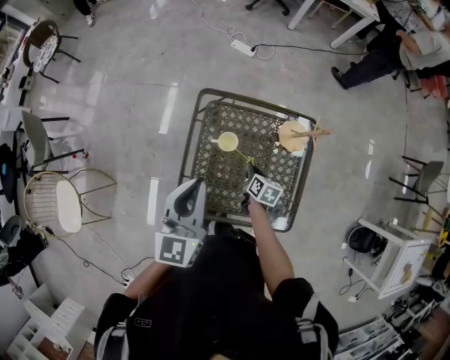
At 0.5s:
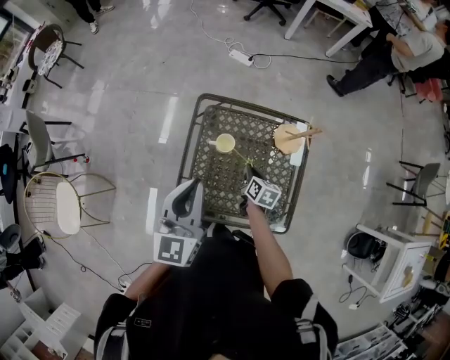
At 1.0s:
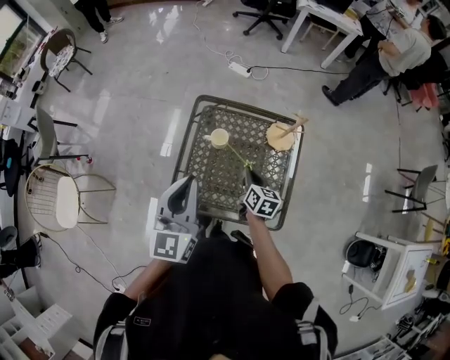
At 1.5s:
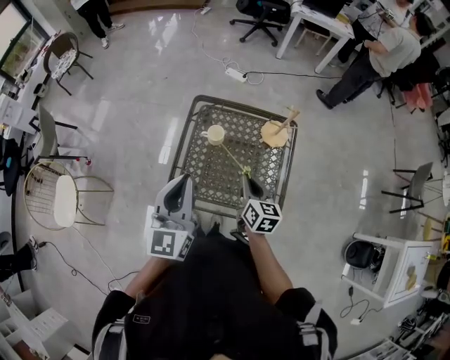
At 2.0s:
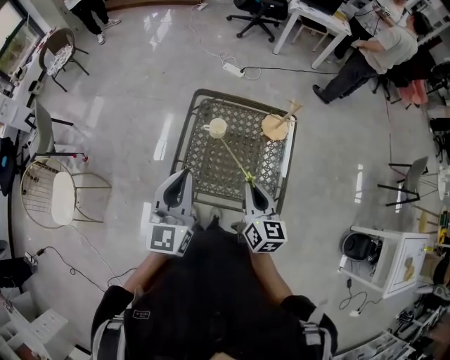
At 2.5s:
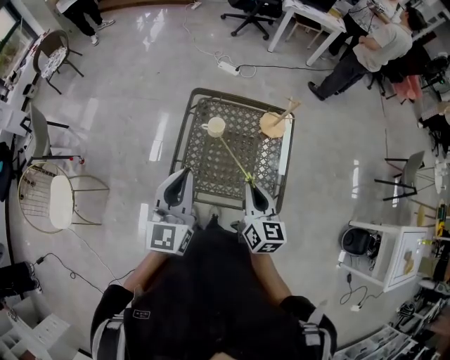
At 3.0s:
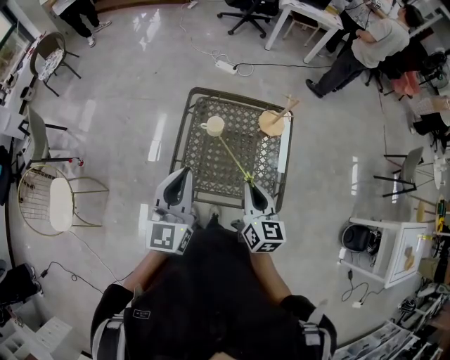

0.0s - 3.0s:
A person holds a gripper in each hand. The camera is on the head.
0.0s - 1.5s: The left gripper is displaced backward by roughly 15 cm. Meanwhile the right gripper goes approximately 25 cm upward and backward, and rotates roughly 30 degrees.
1.5s - 3.0s: The right gripper travels upward and backward by about 10 cm.

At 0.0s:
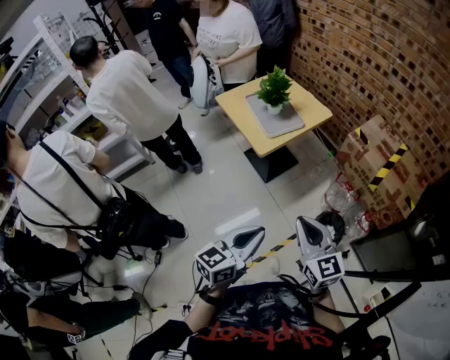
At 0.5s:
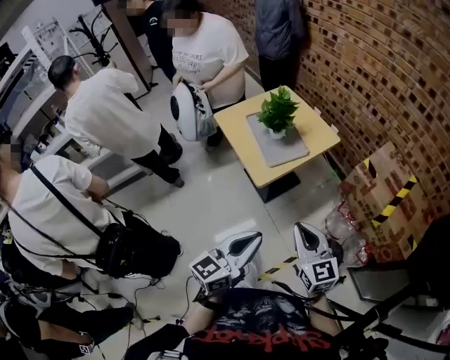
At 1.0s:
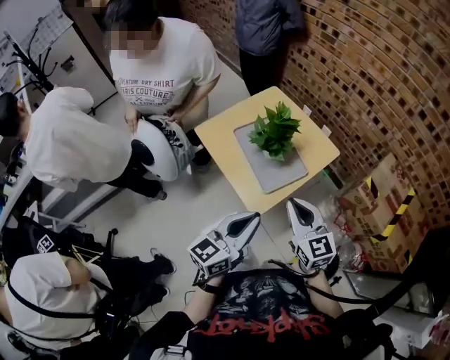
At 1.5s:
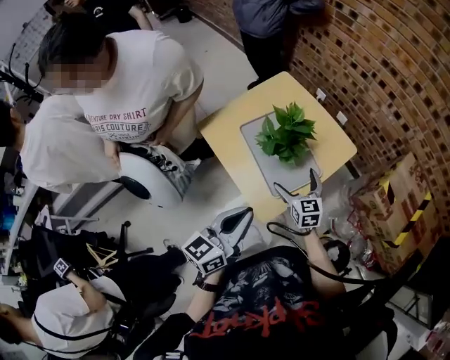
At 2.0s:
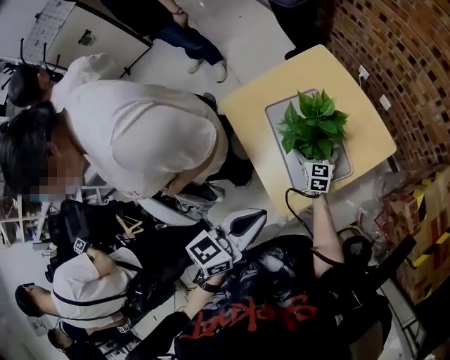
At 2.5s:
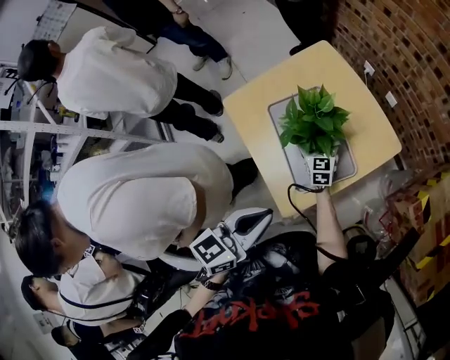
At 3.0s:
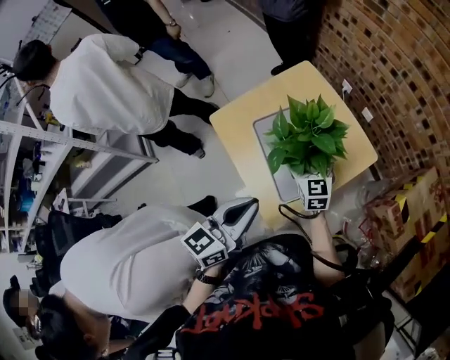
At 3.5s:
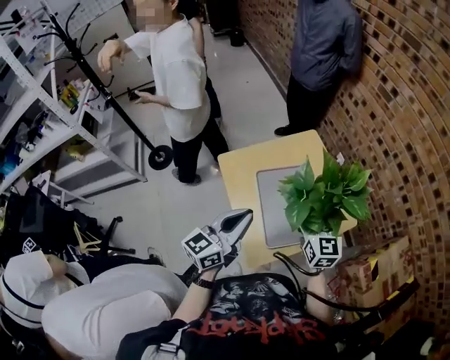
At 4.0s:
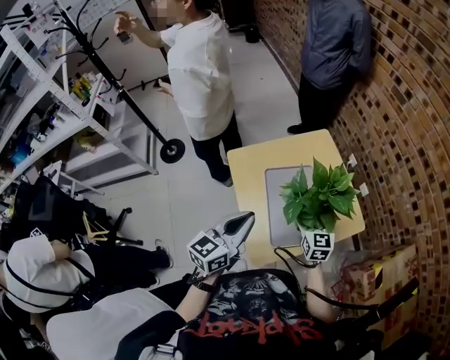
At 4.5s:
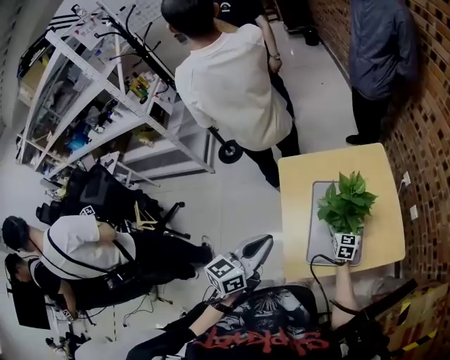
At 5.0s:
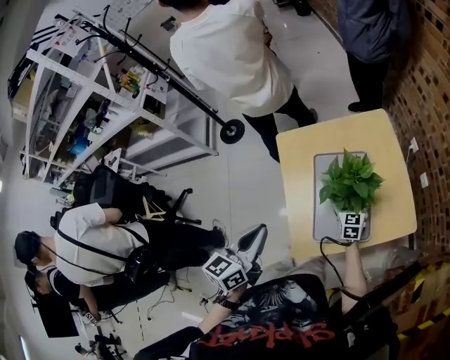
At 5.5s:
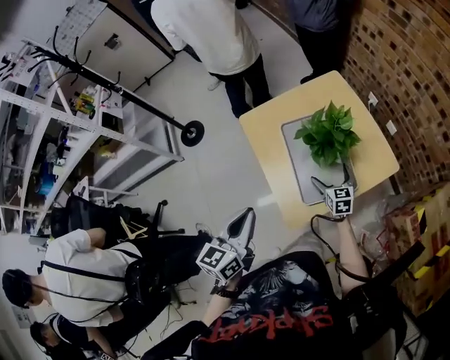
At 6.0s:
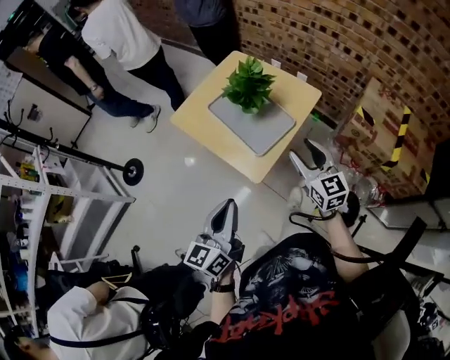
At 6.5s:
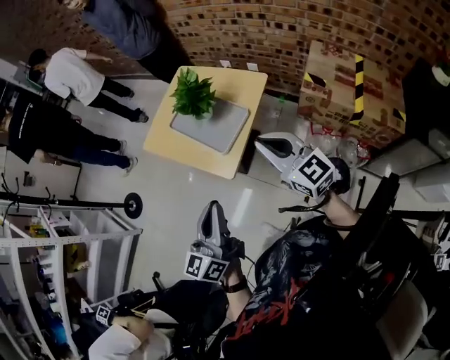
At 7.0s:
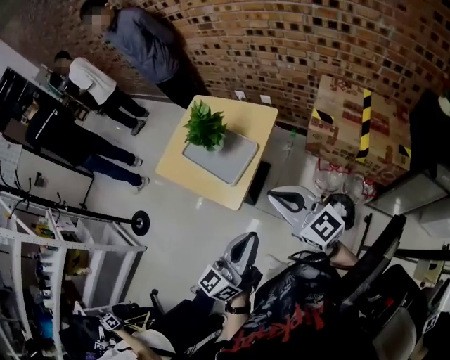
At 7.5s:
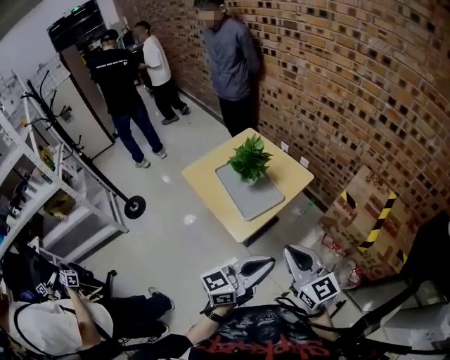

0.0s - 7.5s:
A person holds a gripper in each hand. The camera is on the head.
0.0s - 2.0s: The pair of grippers is taken forward, some 70 cm. The right gripper moves downward, about 35 cm, turns by some 20 degrees, and opens up.
2.0s - 4.0s: The right gripper heads upward, covering about 20 cm. Meanwhile the left gripper heads forward and to the left, covering approximately 10 cm, and turns by some 20 degrees.
4.0s - 5.5s: The left gripper travels backward by about 10 cm, while the right gripper shifts about 15 cm downward.
5.5s - 7.5s: The right gripper moves approximately 60 cm, turns by roughly 30 degrees, and closes up, while the left gripper moves about 35 cm, and turns by approximately 60 degrees.

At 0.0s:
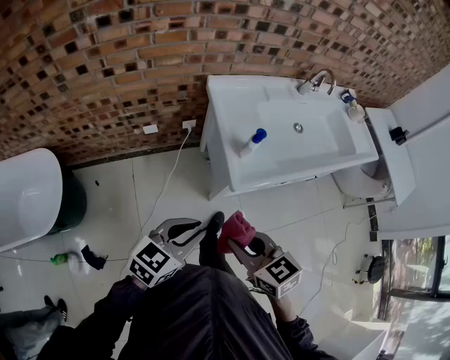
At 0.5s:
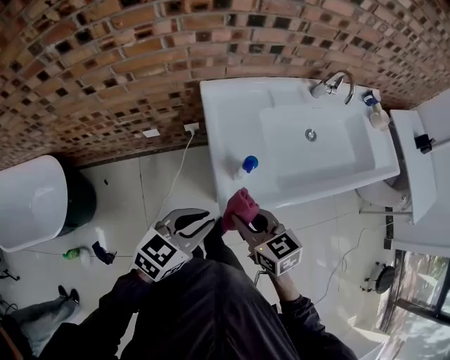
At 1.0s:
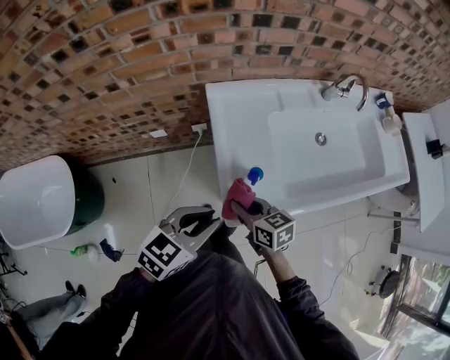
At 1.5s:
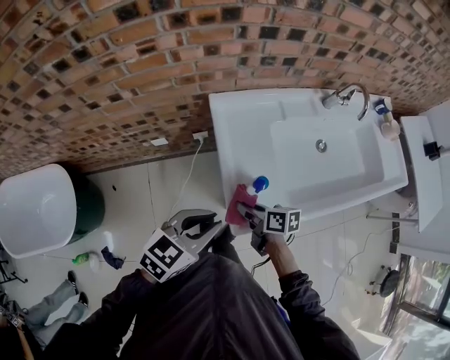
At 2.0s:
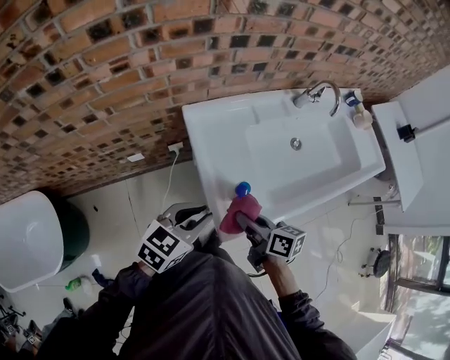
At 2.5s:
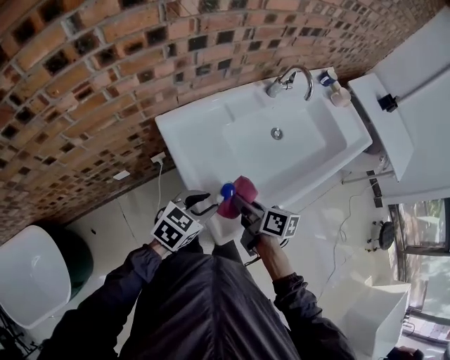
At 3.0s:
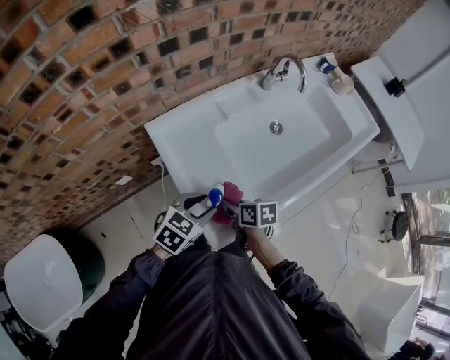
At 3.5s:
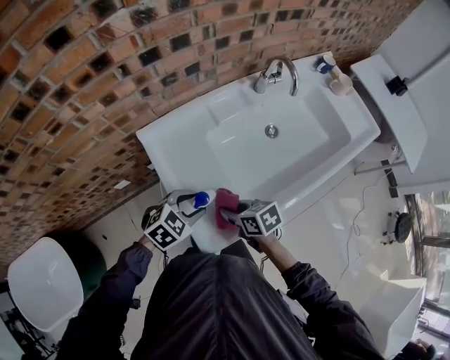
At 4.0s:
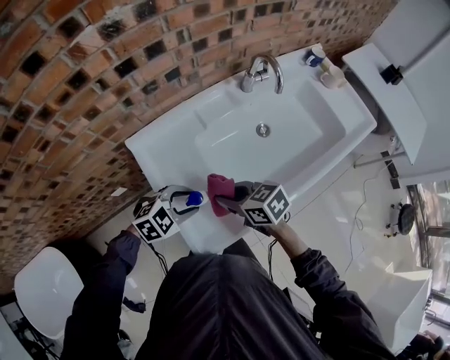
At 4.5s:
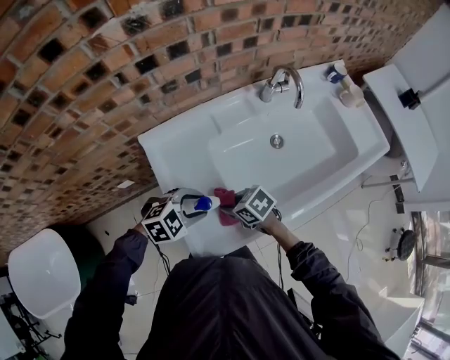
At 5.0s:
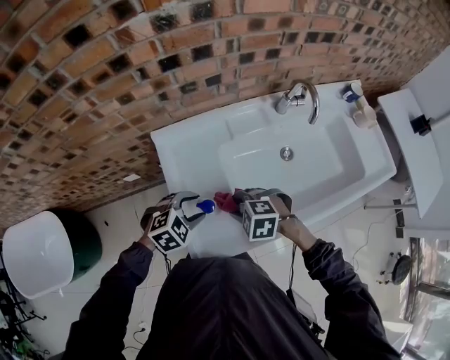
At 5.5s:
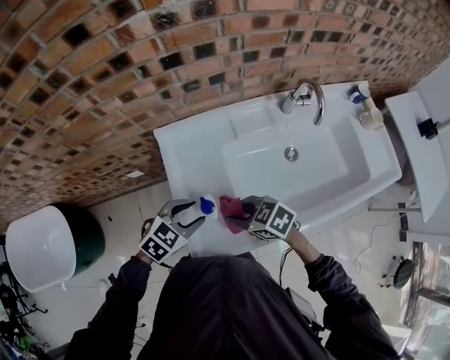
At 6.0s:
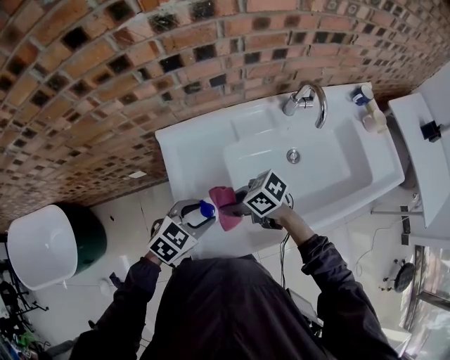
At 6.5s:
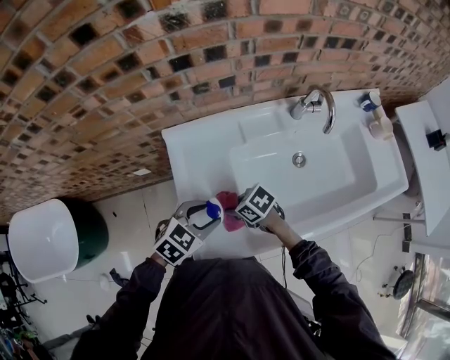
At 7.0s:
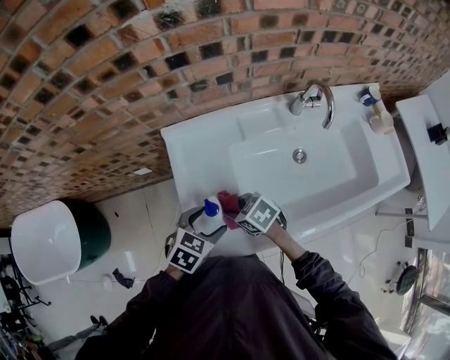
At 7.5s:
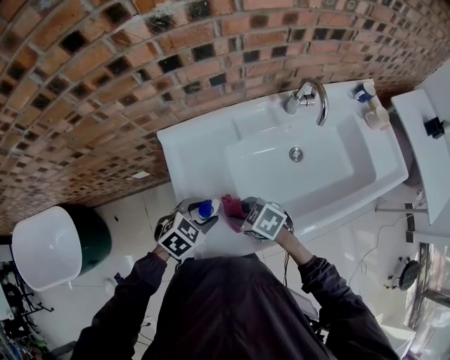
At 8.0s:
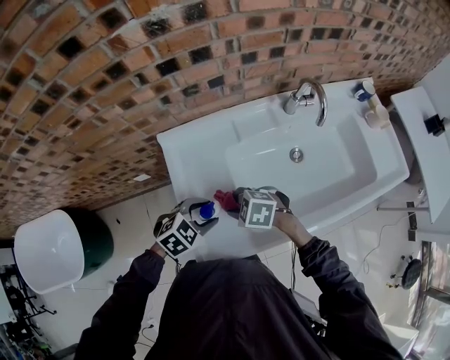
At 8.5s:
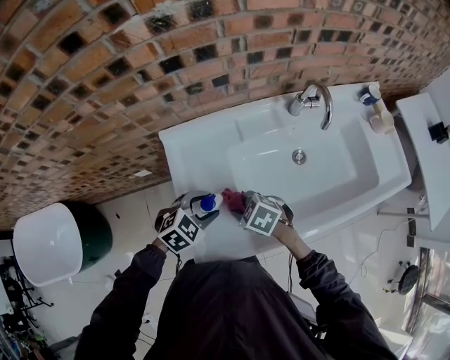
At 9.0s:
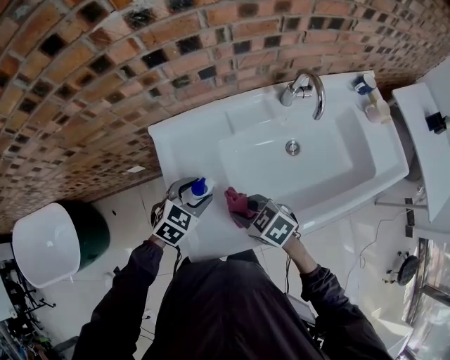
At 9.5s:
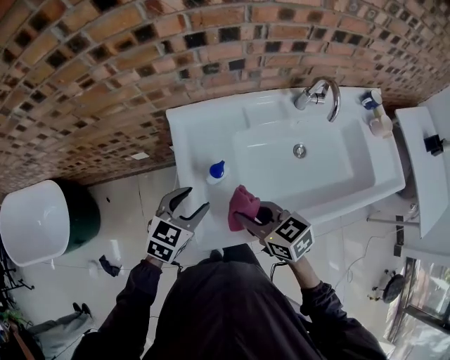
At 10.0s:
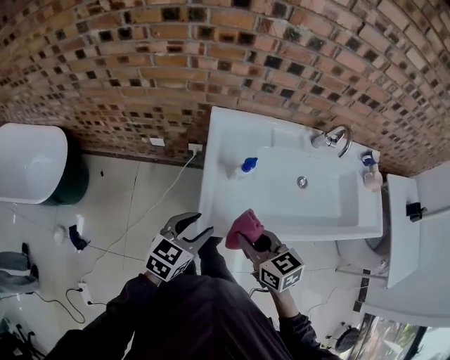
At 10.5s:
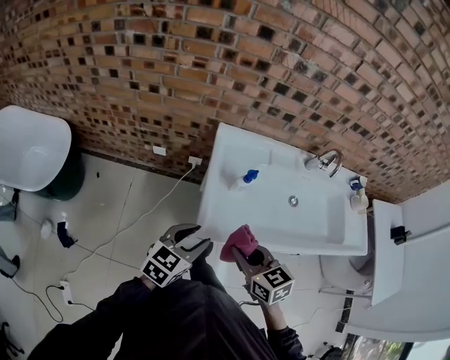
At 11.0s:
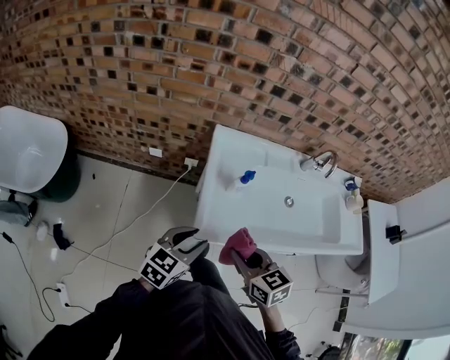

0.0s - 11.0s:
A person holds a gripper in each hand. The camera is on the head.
0.0s - 2.0s: Both grippers move forward, some 25 cm. The right gripper rotates around the line of its fingers by roughly 40 degrees, clockwise from behind.
2.0s - 3.5s: The right gripper goes approximately 10 cm downward, and changes its angle by roughly 20 degrees; the left gripper moves some 15 cm, and turns by roughly 30 degrees.
3.5s - 5.5s: The right gripper goes up and down, approximately 10 cm each way, reversing 2 times, and rolls counterclockwise, seen from behind, by some 40 degrees.
5.5s - 7.5s: The left gripper opens and closes again.
7.5s - 9.0s: The left gripper ends up approximately 5 cm from where it was.
9.0s - 11.0s: The left gripper goes about 30 cm backward, to the left and upward, and changes its angle by approximately 40 degrees, while the right gripper moves backward, upward and to the left, about 20 cm, and rotates approximately 20 degrees.

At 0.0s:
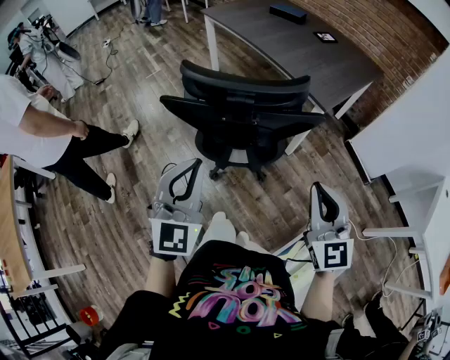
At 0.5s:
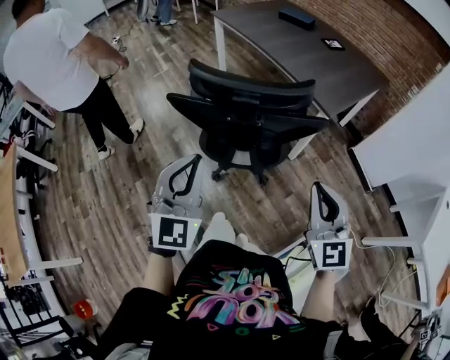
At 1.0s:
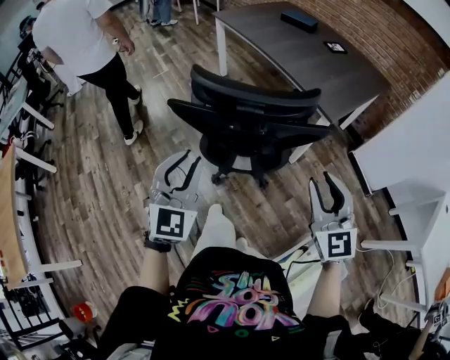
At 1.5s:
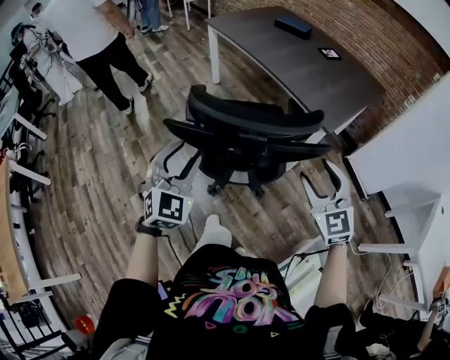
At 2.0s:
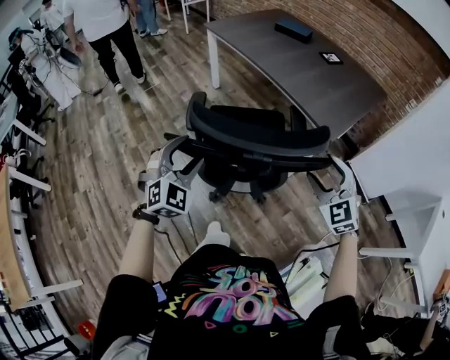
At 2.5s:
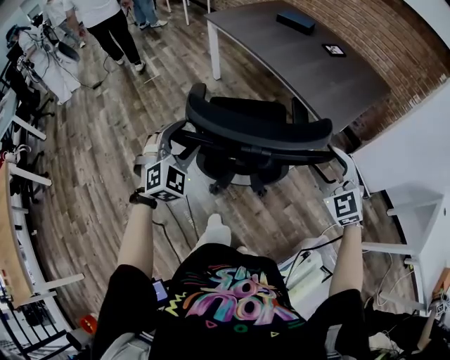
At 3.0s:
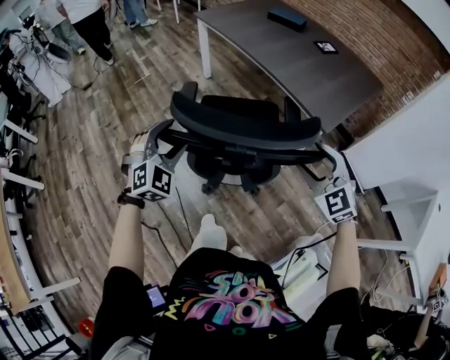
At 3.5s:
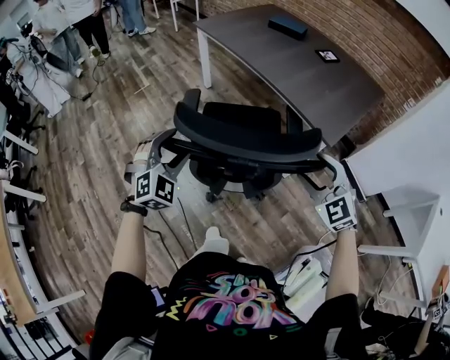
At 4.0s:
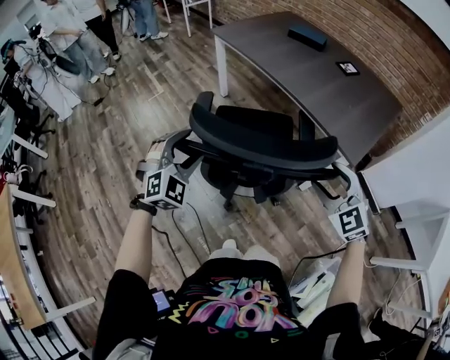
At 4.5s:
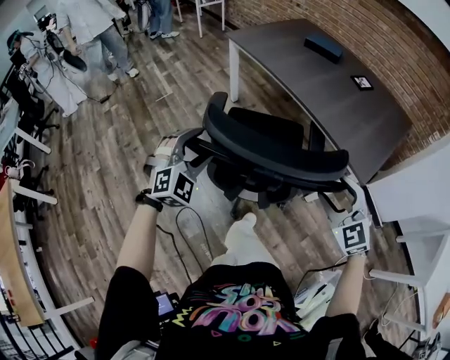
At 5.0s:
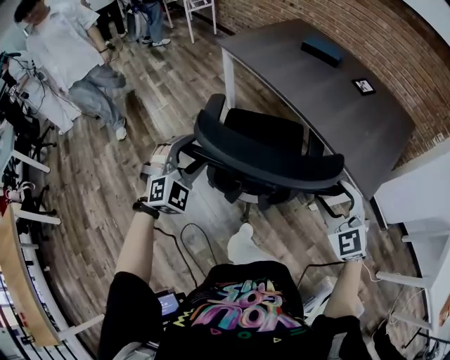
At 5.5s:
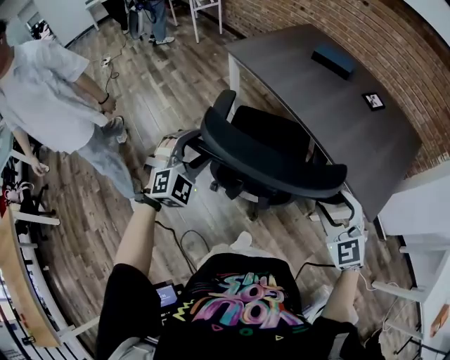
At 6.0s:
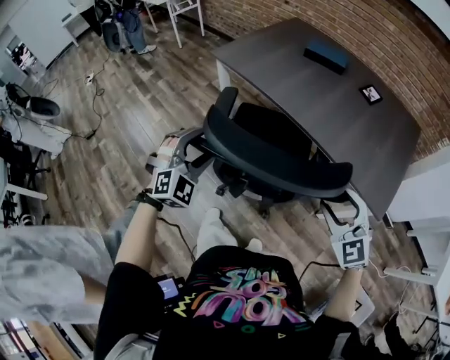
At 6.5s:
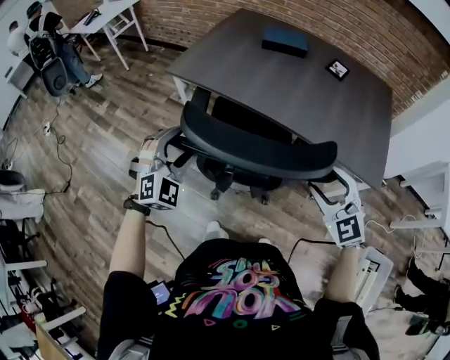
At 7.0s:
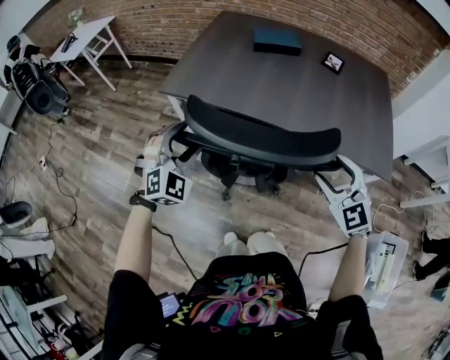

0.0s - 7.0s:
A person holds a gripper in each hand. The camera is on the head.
0.0s - 2.0s: The left gripper heads forward and downward, covering about 20 cm, rotates approximately 30 degrees, and opens, while the right gripper goes some 20 cm forward, changes its angle by about 30 degrees, and opens.
2.0s - 3.5s: The right gripper changes place by approximately 5 cm; the left gripper moves forward, roughly 10 cm.
3.5s - 5.0s: The two grippers go roughly 20 cm forward and to the left.
5.0s - 7.0s: The right gripper ends up approximately 25 cm from where it was, and swivels about 30 degrees, while the left gripper changes place by about 40 cm, and rotates approximately 30 degrees.
